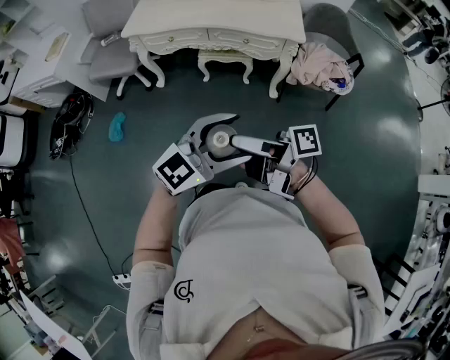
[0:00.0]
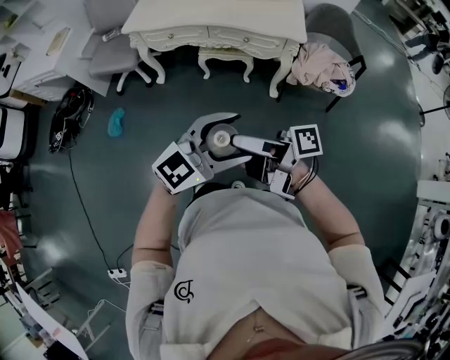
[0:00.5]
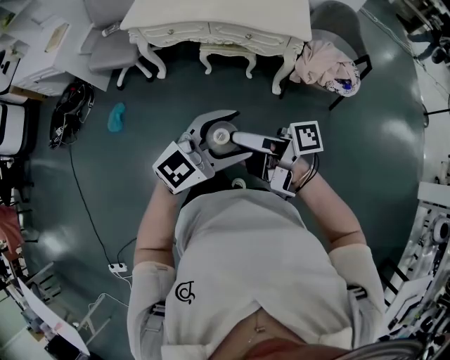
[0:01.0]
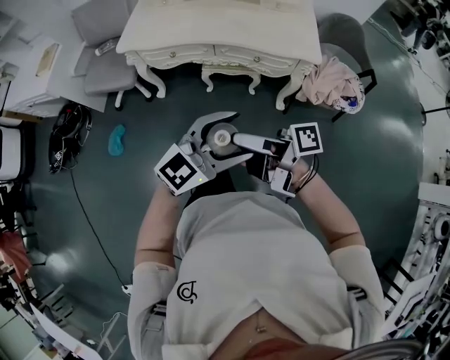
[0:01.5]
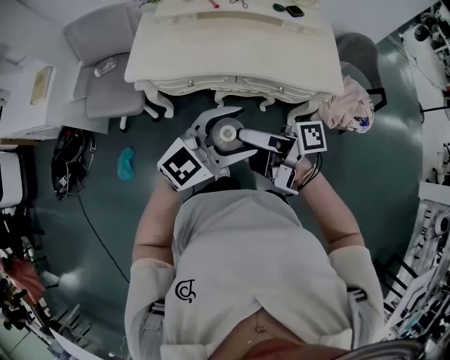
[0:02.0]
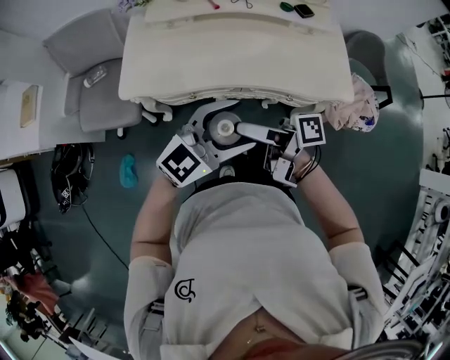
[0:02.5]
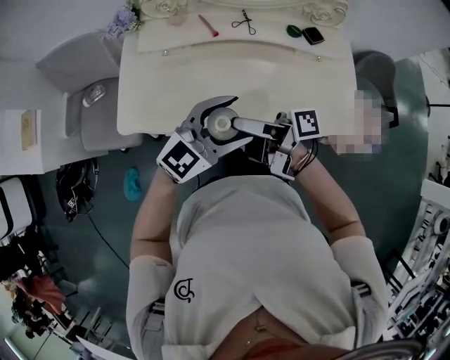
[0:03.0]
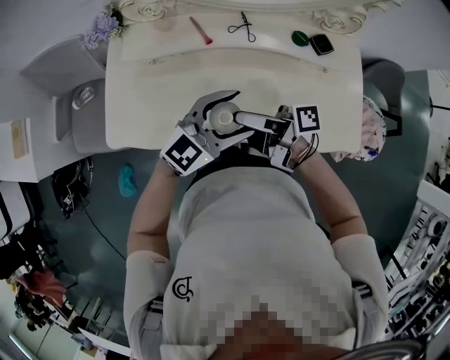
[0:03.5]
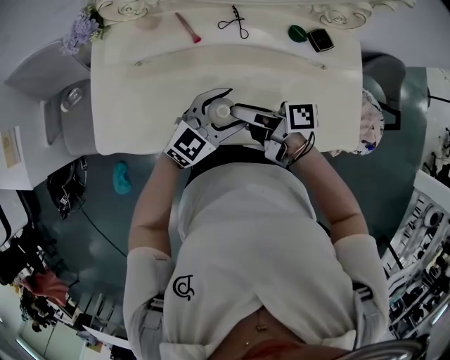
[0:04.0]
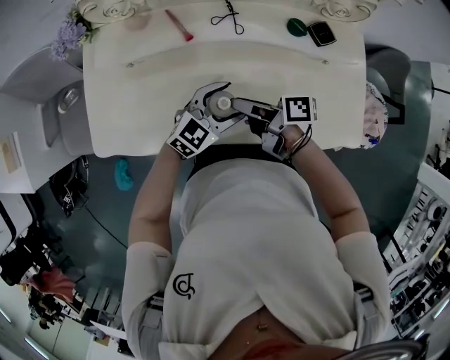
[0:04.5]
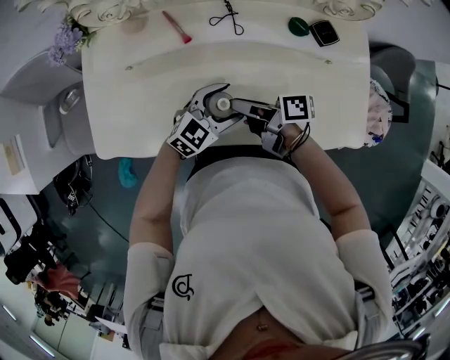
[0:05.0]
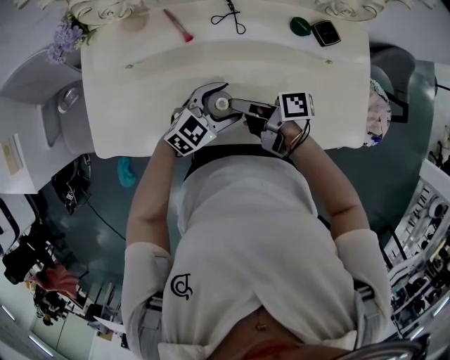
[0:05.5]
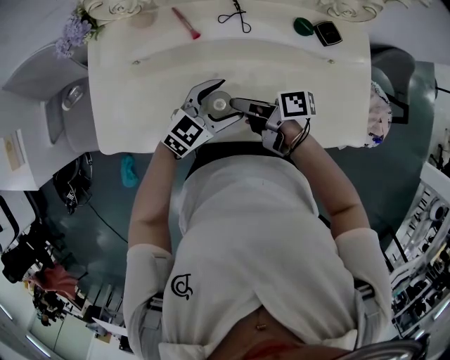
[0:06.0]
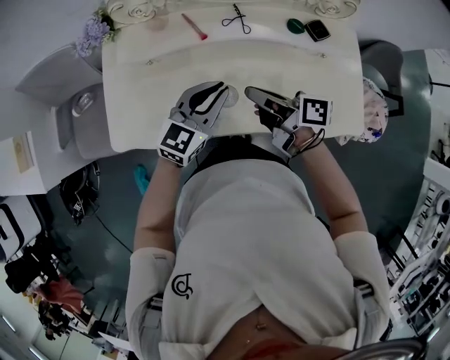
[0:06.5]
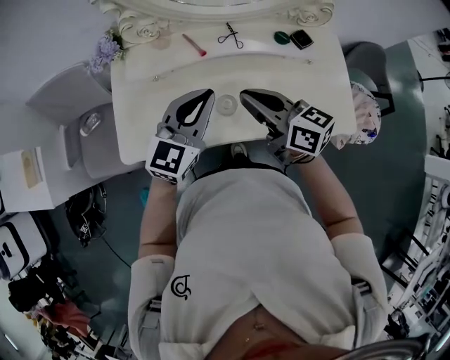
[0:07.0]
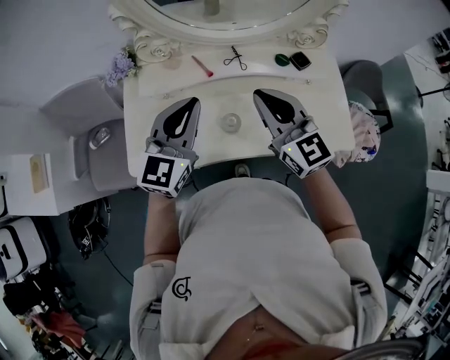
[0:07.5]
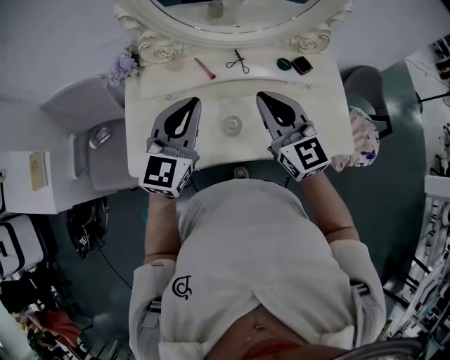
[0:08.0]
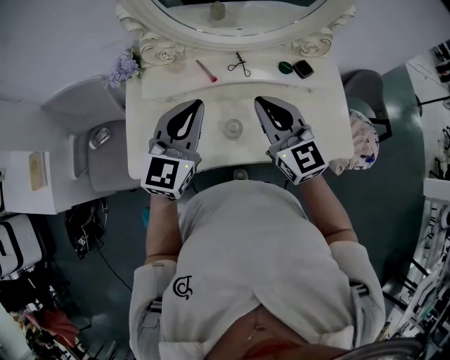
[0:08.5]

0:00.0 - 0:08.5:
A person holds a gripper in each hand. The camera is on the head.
0:00.0 - 0:02.0: The left gripper shifts by some 40 cm.
0:02.0 - 0:04.0: The left gripper shifts by about 40 cm.
0:04.0 - 0:06.5: The left gripper shifts by approximately 10 cm, and closes.
0:06.5 - 0:08.5: The left gripper is displaced upward by roughly 15 cm.

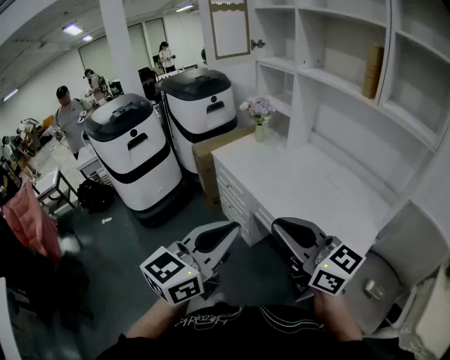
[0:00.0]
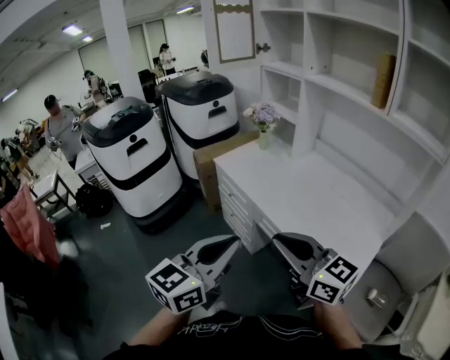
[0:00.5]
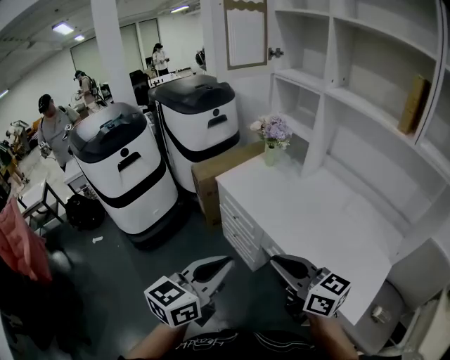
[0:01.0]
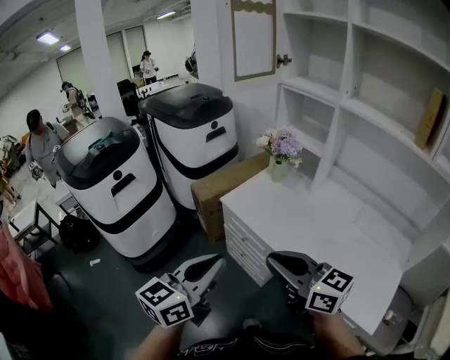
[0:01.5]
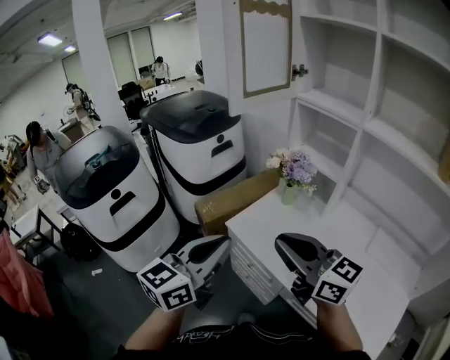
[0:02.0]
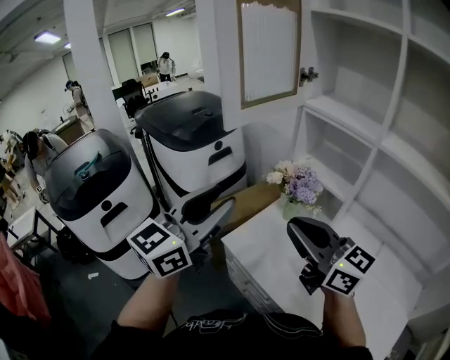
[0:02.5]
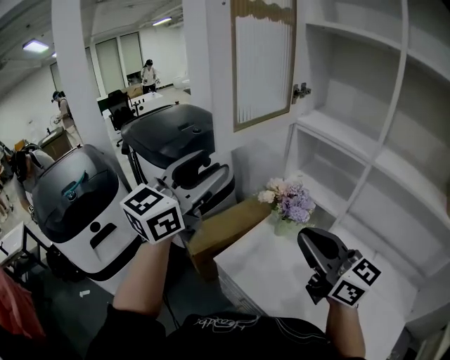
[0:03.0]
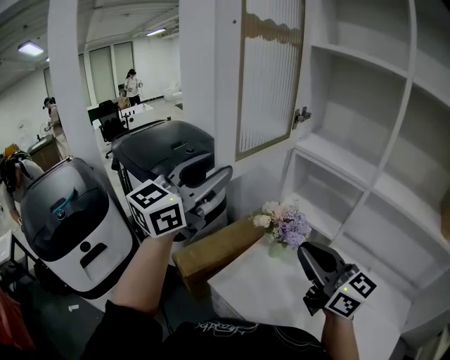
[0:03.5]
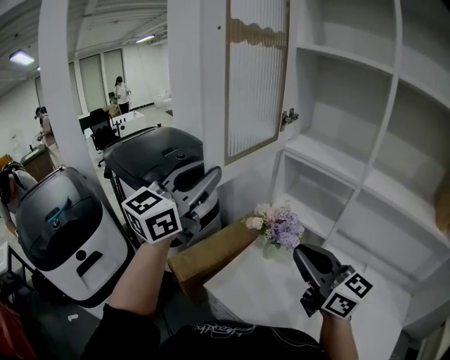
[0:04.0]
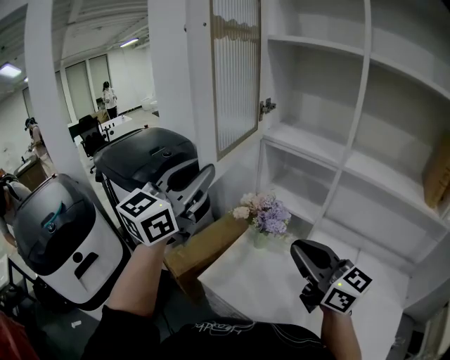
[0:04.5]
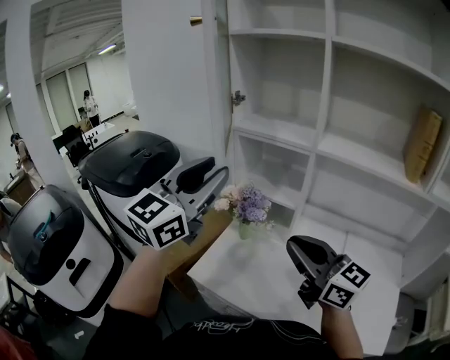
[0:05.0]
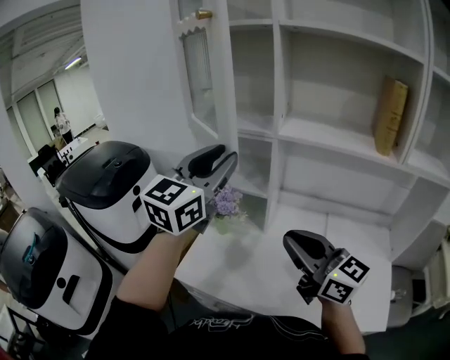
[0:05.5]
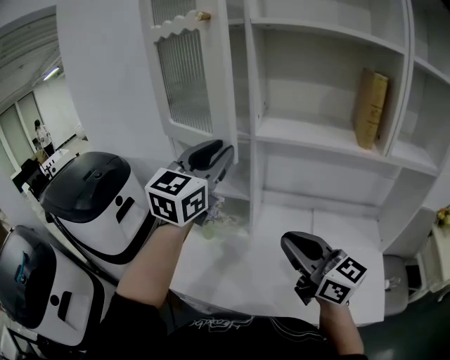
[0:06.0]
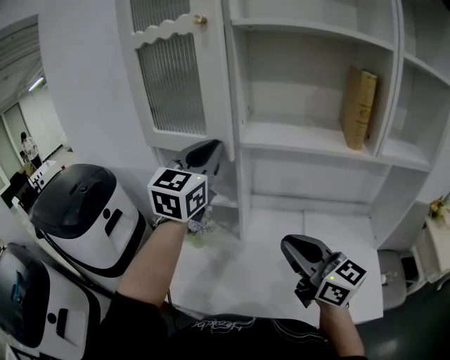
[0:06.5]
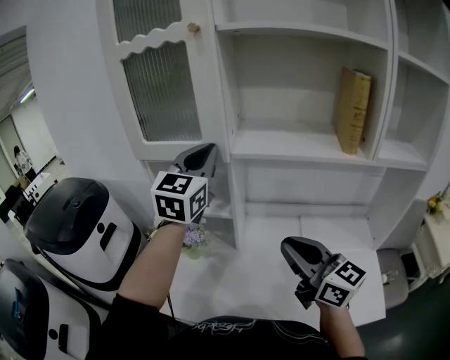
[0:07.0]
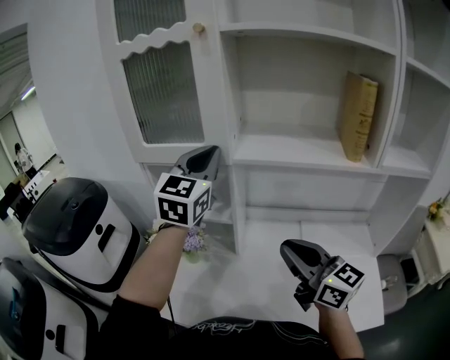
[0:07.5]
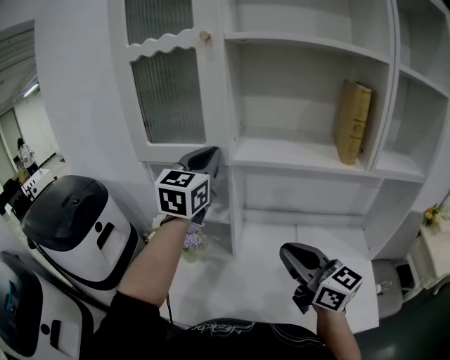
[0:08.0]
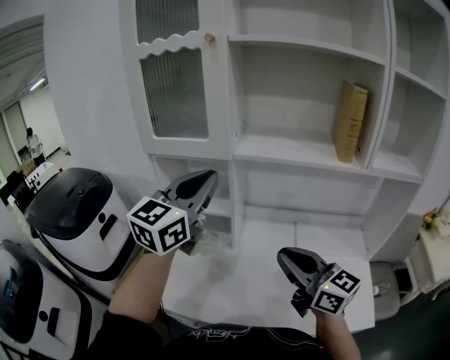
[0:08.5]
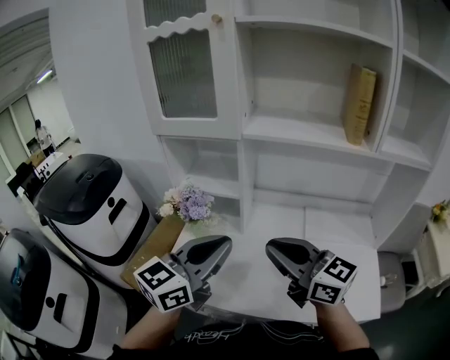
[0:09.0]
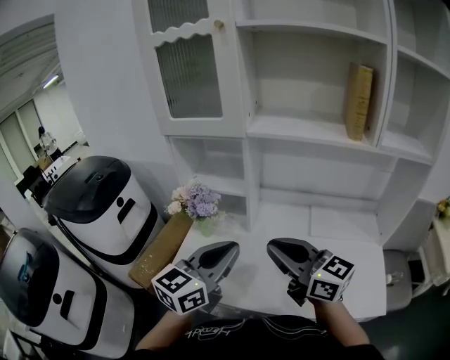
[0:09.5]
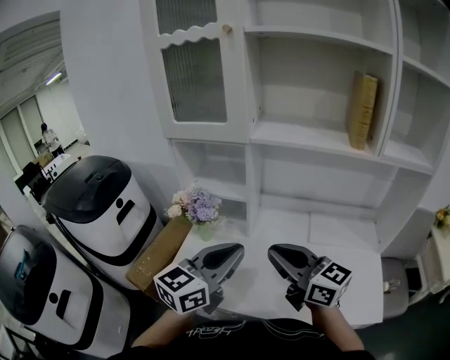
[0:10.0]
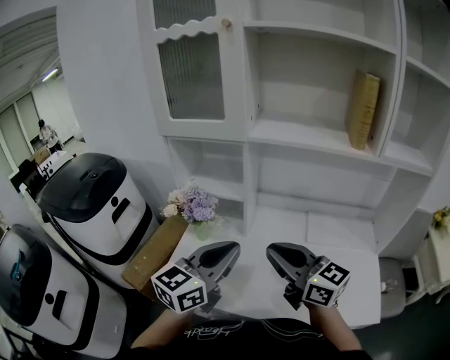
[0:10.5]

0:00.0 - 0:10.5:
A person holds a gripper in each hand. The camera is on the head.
0:00.0 - 0:02.0: Both grippers are carried forward, roughly 50 cm.
0:02.0 - 0:04.0: The left gripper heads forward and upward, covering about 35 cm, changes its angle by some 20 degrees, and opens and closes again. Meanwhile the right gripper is displaced forward by approximately 20 cm.
0:04.0 - 0:06.5: The left gripper is displaced to the right by some 35 cm. The right gripper moves to the right, about 20 cm, and changes its angle by roughly 30 degrees.
0:06.5 - 0:08.5: The left gripper goes some 5 cm backward.
0:08.5 - 0:10.5: The left gripper moves downward and backward, some 20 cm. Meanwhile the right gripper shifts about 5 cm to the left.

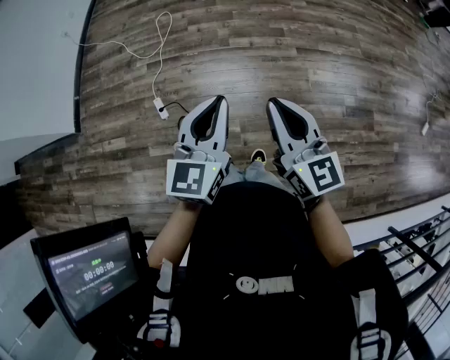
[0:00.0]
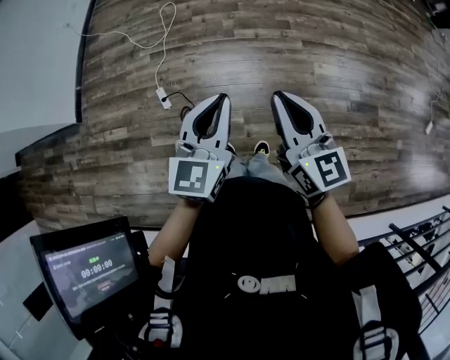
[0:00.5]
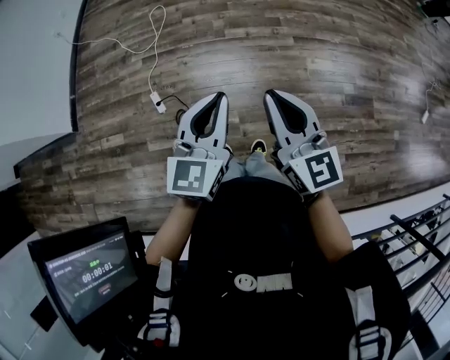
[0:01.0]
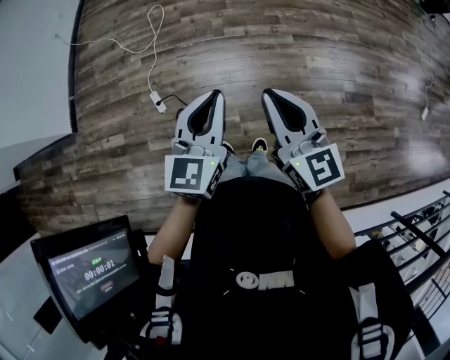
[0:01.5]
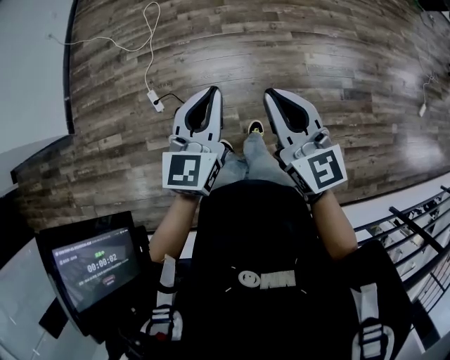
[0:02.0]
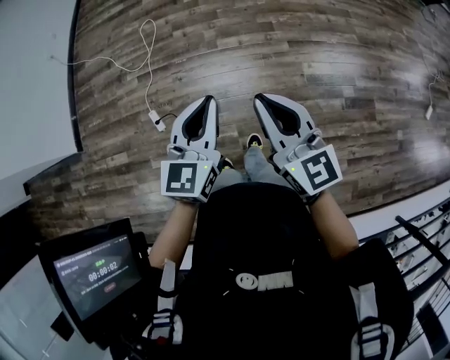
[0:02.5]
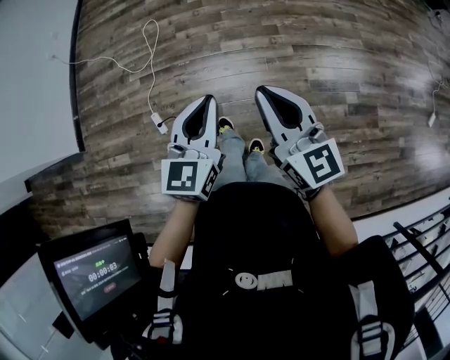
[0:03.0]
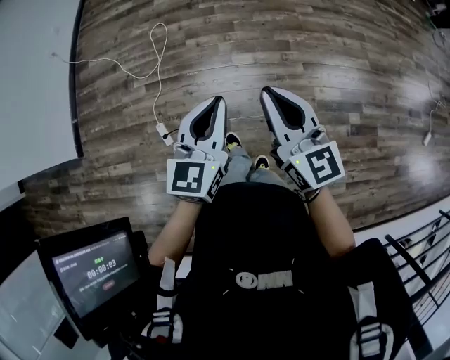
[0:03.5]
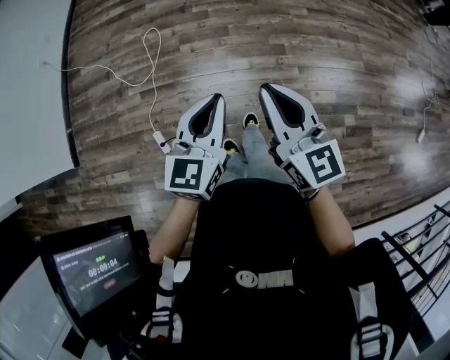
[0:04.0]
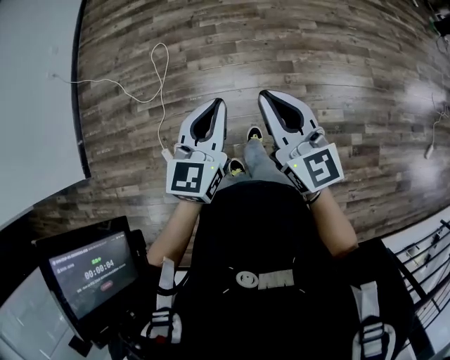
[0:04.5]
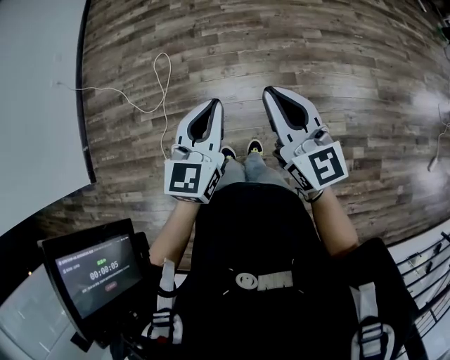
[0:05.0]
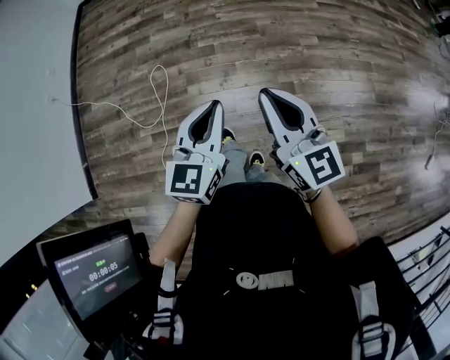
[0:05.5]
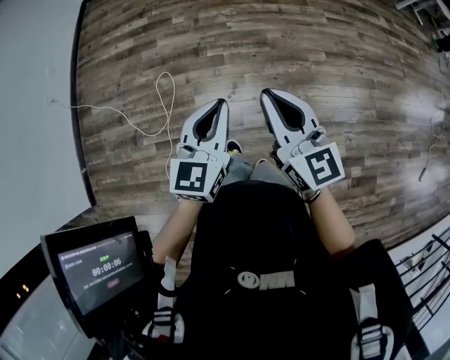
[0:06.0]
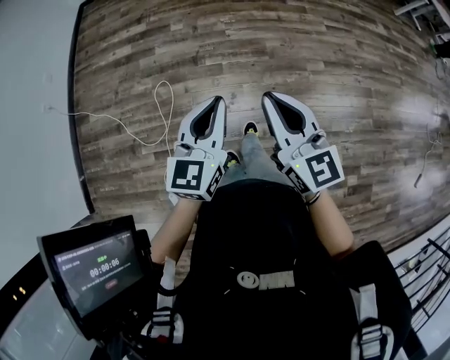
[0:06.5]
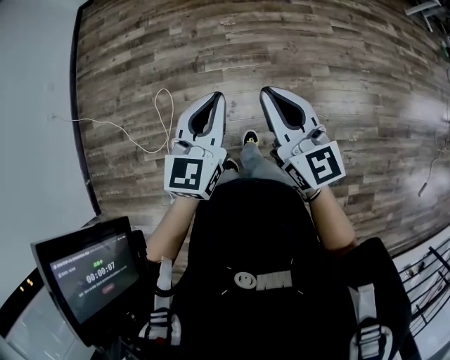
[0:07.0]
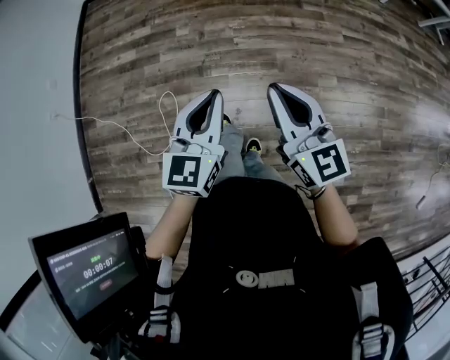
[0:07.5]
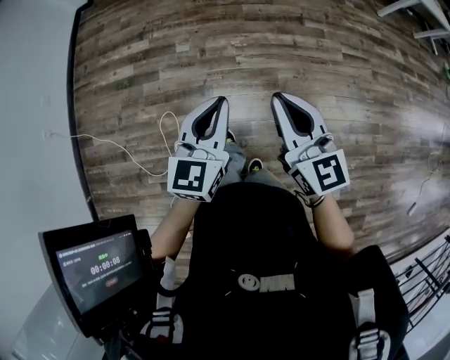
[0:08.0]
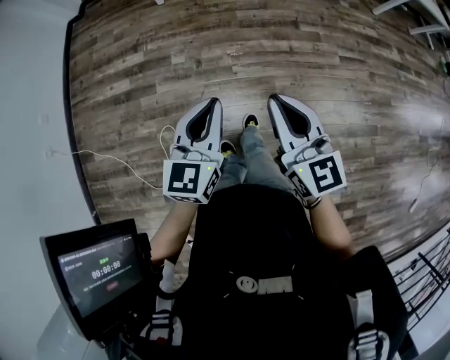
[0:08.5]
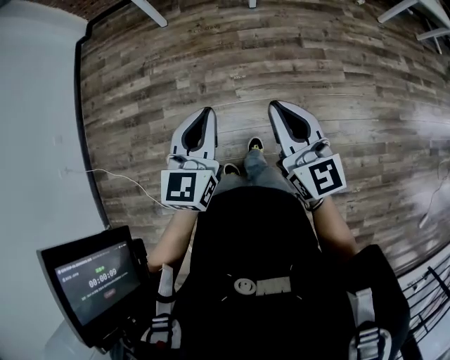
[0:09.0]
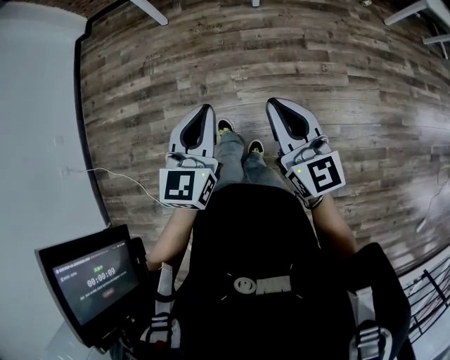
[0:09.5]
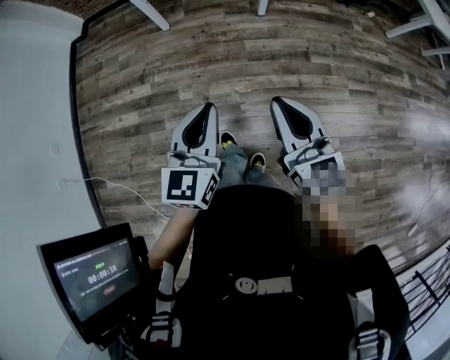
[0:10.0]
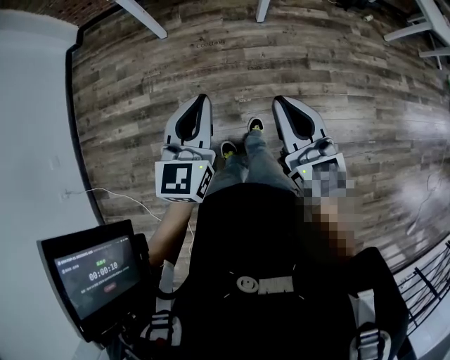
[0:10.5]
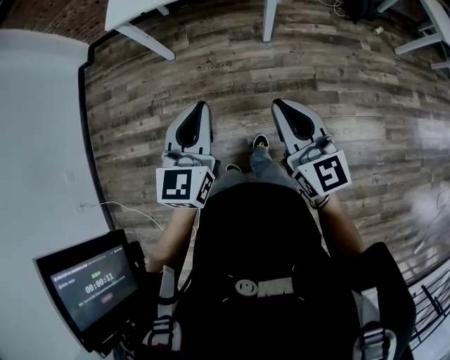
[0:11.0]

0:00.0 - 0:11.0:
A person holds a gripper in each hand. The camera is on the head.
0:00.0 - 0:02.0: There are only small adjustments of the grippers.
0:02.0 - 0:03.5: The grippers both shift forward by some 25 cm.
0:03.5 - 0:05.5: Both grippers move forward, roughly 35 cm.
0:05.5 - 0:07.5: Both grippers move forward, approximately 35 cm.
0:07.5 - 0:09.0: Both grippers travel together forward, about 30 cm.
0:09.0 - 0:11.0: Both grippers move forward, some 35 cm.
